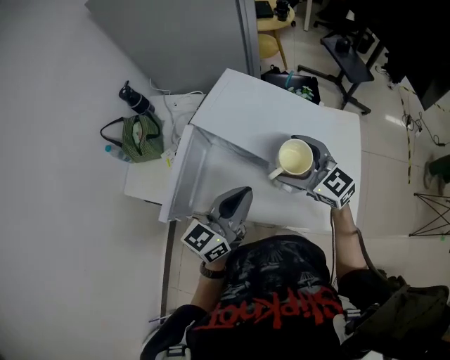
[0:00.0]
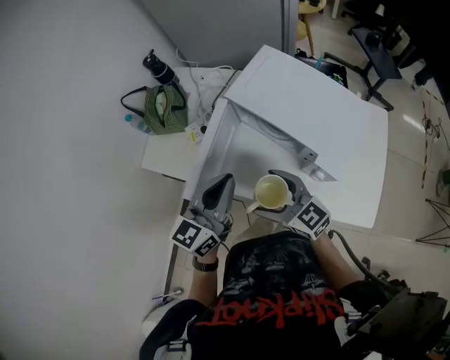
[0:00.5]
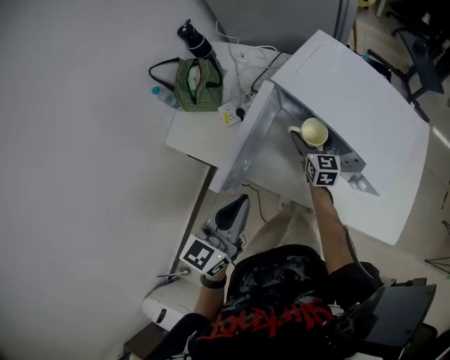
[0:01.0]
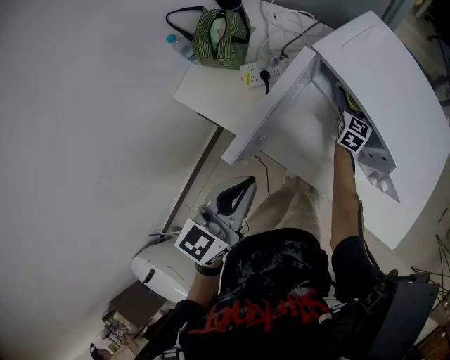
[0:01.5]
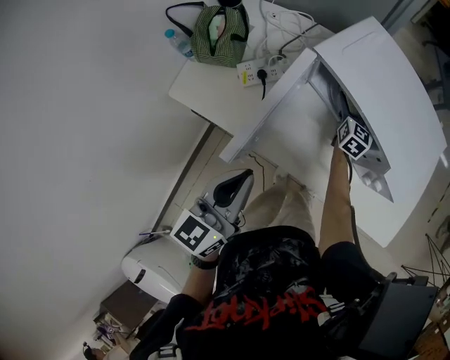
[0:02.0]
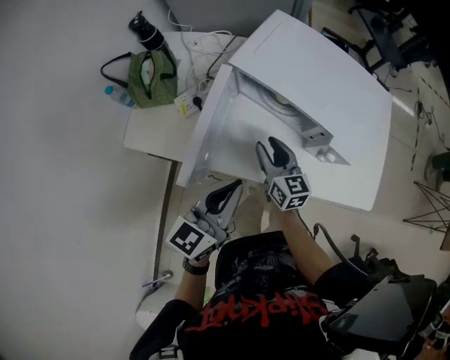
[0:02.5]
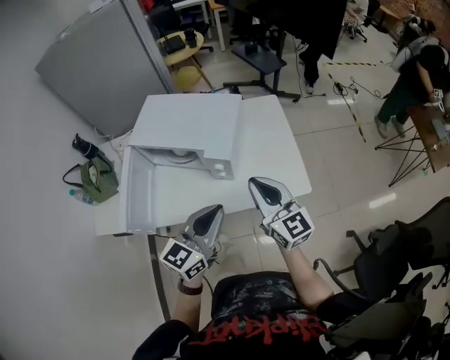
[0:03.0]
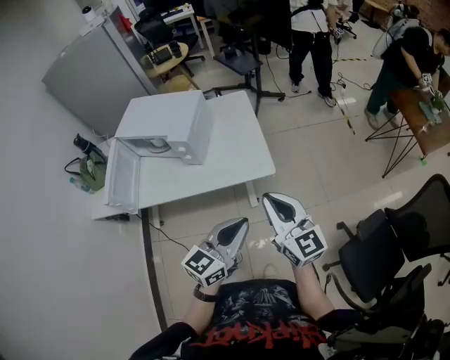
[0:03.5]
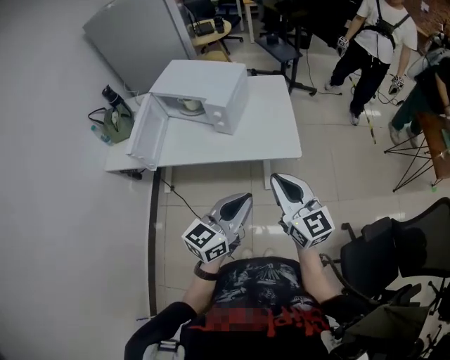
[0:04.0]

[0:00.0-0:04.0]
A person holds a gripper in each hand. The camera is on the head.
0:00.0 to 0:02.0: The right gripper travels downward and forward by about 35 cm, and swivels approximately 50 degrees. Meanwhile the left gripper goes roughly 25 cm to the left, and turns by approximately 30 degrees.
0:02.0 to 0:04.0: Both grippers are carried to the right and backward, approximately 60 cm. The left gripper changes its angle by roughly 40 degrees. The right gripper travels upward by about 35 cm, turns by roughly 30 degrees, and closes.

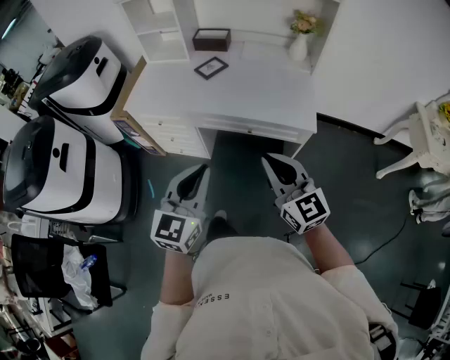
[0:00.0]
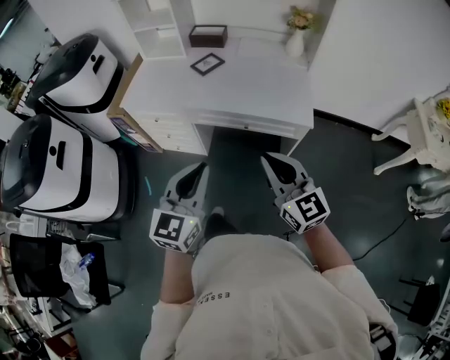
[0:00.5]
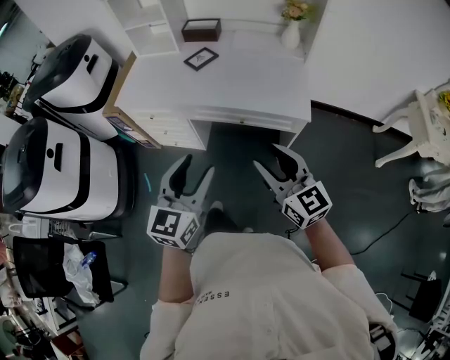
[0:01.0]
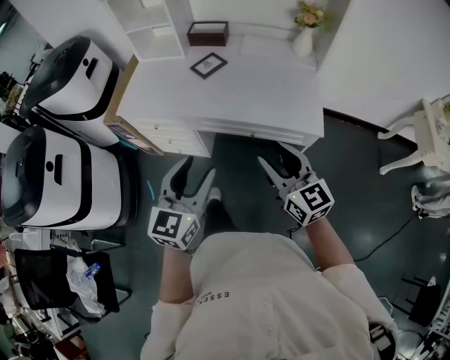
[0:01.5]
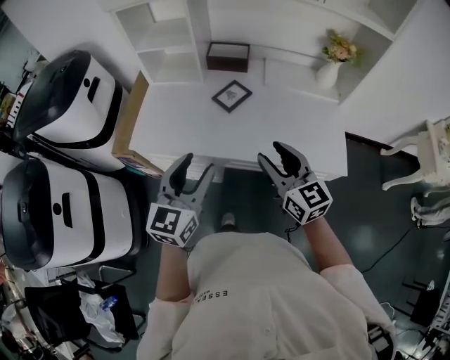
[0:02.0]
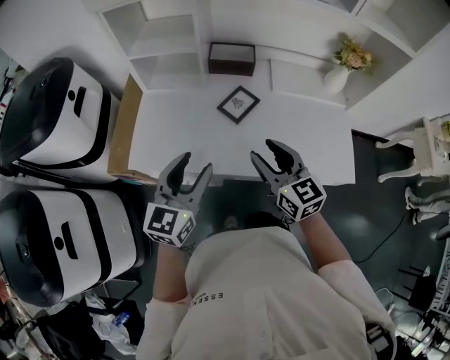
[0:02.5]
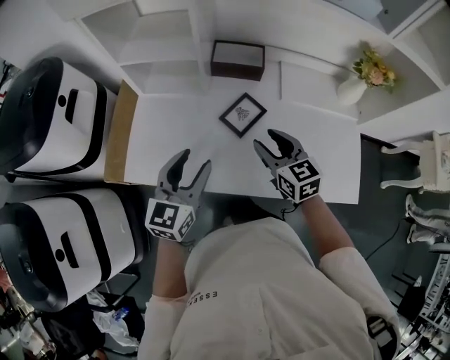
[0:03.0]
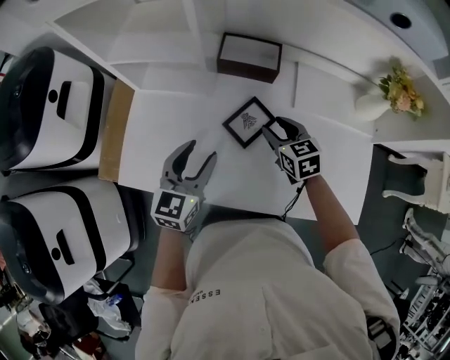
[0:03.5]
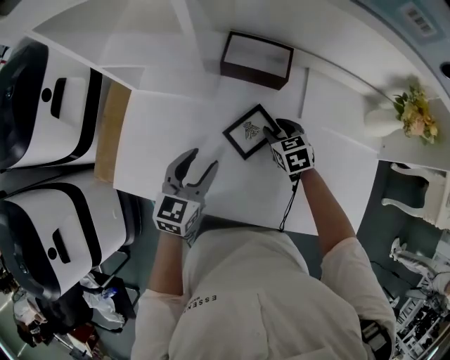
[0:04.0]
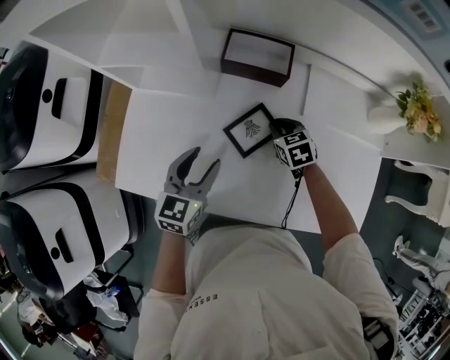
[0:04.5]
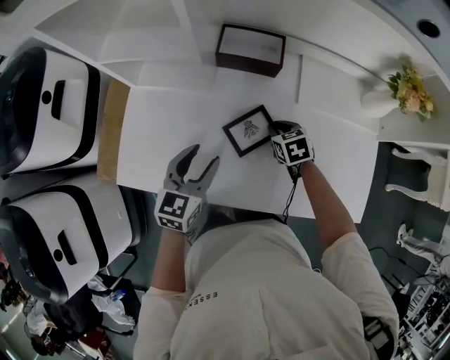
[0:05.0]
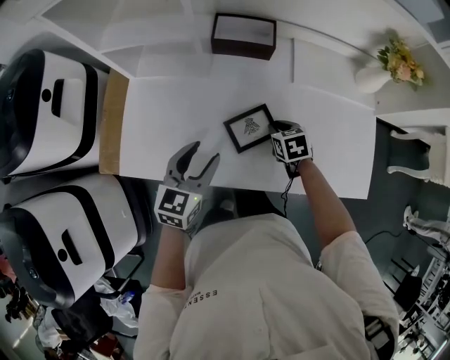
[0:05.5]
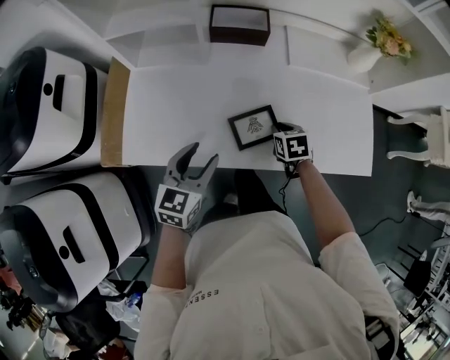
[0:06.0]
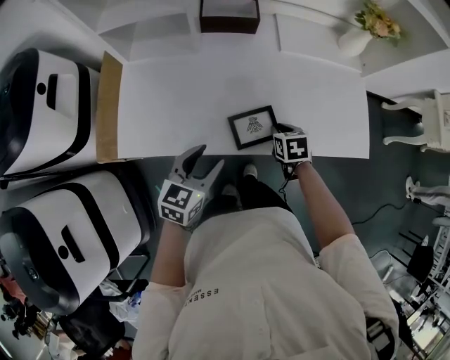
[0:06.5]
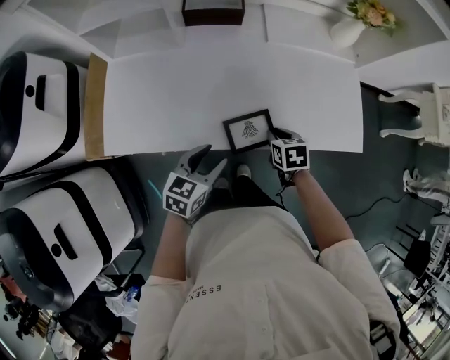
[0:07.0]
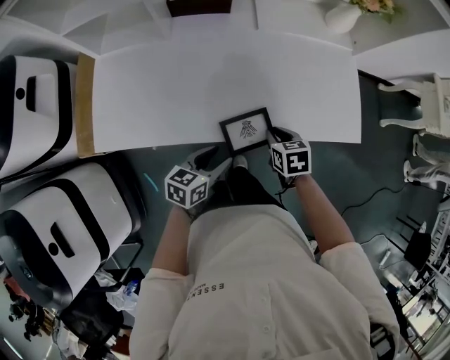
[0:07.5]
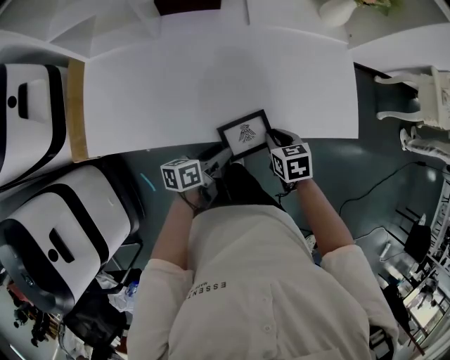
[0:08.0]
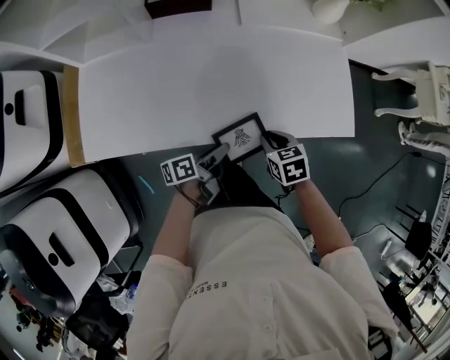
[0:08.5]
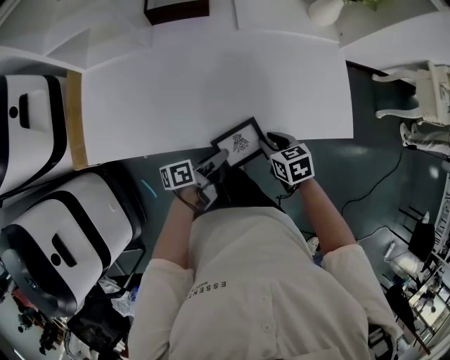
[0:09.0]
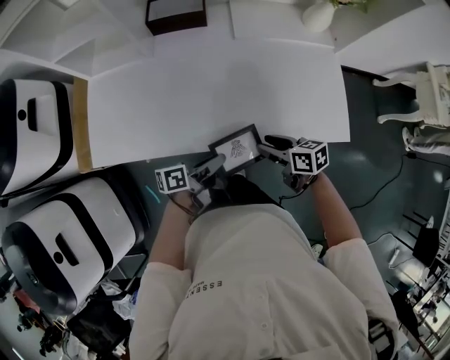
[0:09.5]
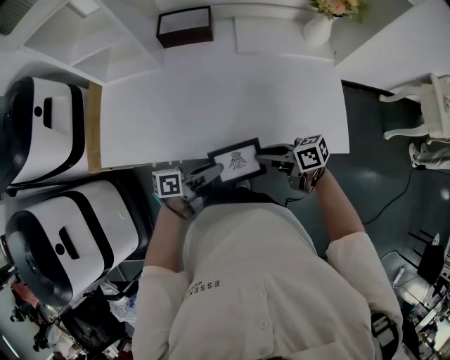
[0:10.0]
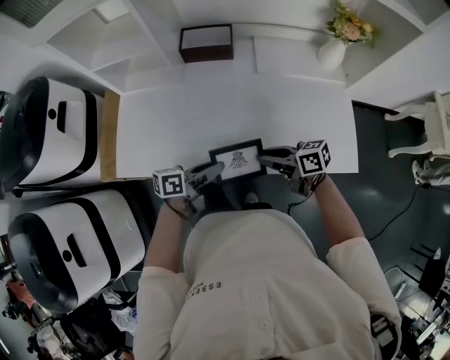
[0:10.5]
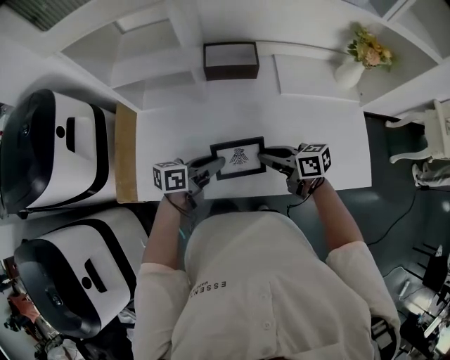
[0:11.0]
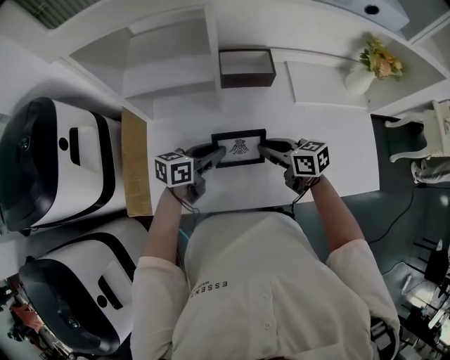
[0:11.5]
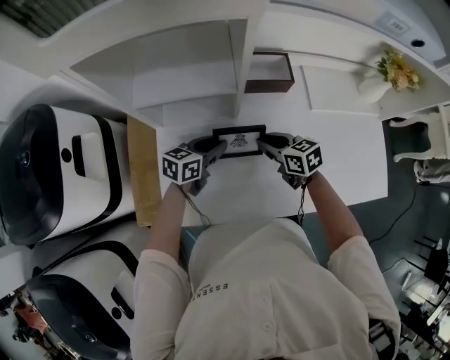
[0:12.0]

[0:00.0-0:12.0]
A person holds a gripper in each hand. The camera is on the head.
0:00.0 to 0:02.0: The right gripper travels forward by roughly 25 cm, and opens. Meanwhile the left gripper heads forward and to the left, covering about 30 cm, and opens up.
0:02.0 to 0:04.0: The grippers both shift forward and downward by about 40 cm. The right gripper points its fingers about 40 degrees further downward.
0:04.0 to 0:06.0: Both grippers travel together backward, about 15 cm. The right gripper turns by some 30 degrees, and closes.
0:06.0 to 0:08.0: The left gripper travels to the right and downward by roughly 20 cm, and twists approximately 50 degrees counterclockwise, seen from behind; the right gripper moves backward and to the right, some 15 cm.
0:08.0 to 0:10.0: The grippers both shift upward by roughly 10 cm. The right gripper tips its fingers upward by approximately 40 degrees, and opens, then closes once more. The left gripper closes up.
0:10.0 to 0:12.0: The right gripper ends up approximately 35 cm from where it was, and turns by about 30 degrees. The left gripper changes place by approximately 40 cm, and rotates approximately 40 degrees.

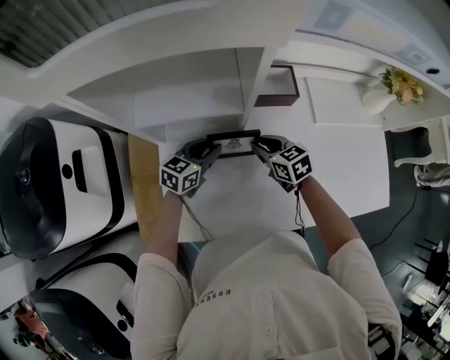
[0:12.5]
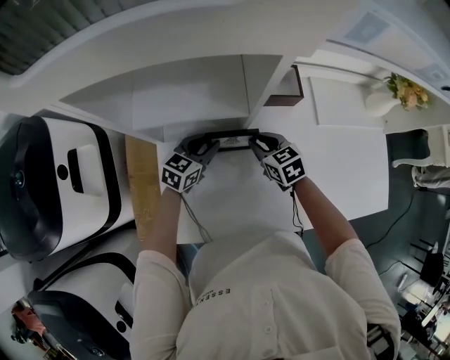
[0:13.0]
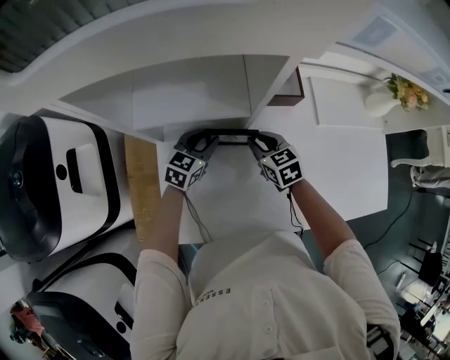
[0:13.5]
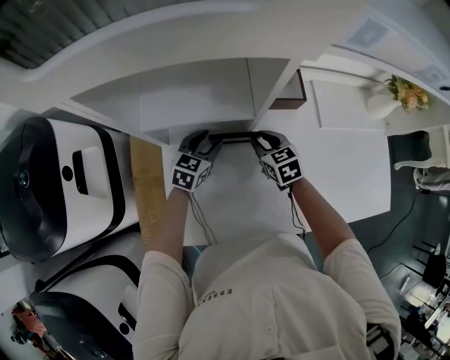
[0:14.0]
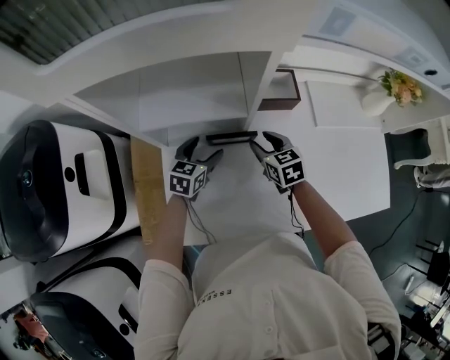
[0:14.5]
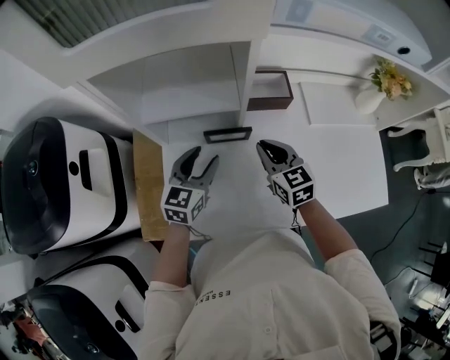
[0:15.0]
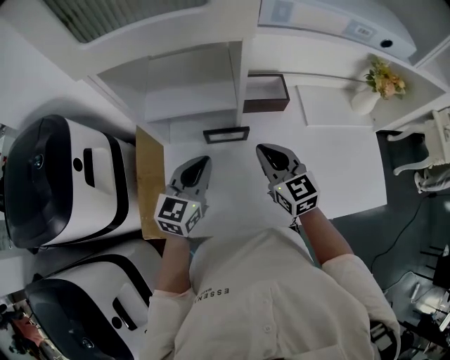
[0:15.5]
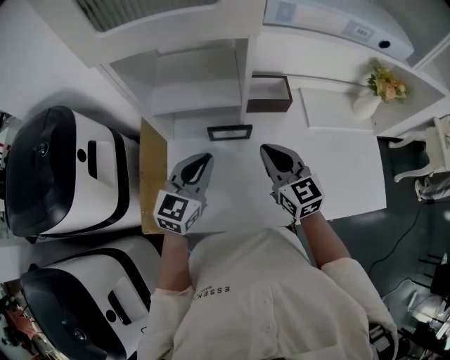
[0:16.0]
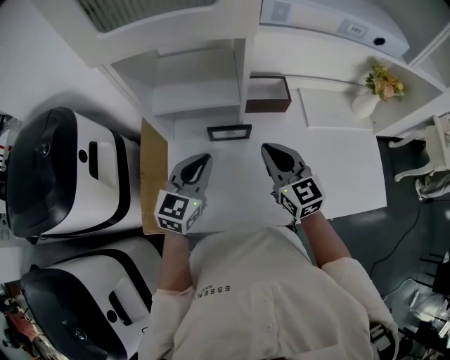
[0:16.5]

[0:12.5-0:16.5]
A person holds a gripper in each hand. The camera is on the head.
0:12.5 to 0:14.5: The right gripper opens its fingers, while the left gripper opens its fingers.
0:14.5 to 0:16.5: Both grippers move upward and backward, approximately 20 cm. The right gripper turns by roughly 30 degrees, and closes up. Meanwhile the left gripper swivels some 20 degrees, and closes.

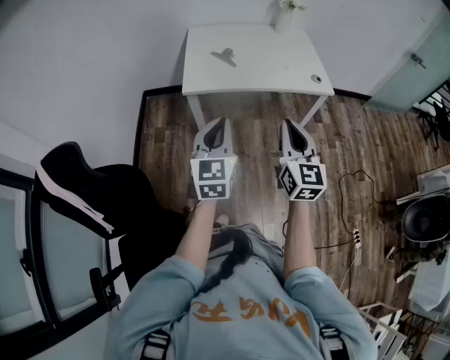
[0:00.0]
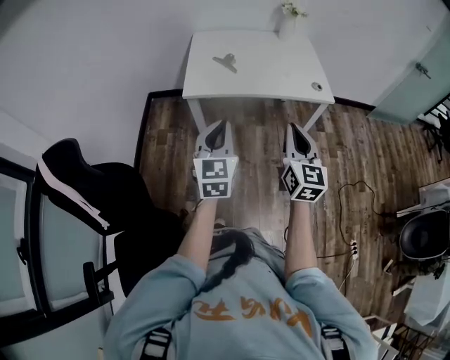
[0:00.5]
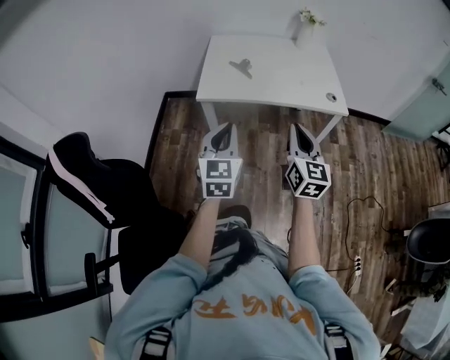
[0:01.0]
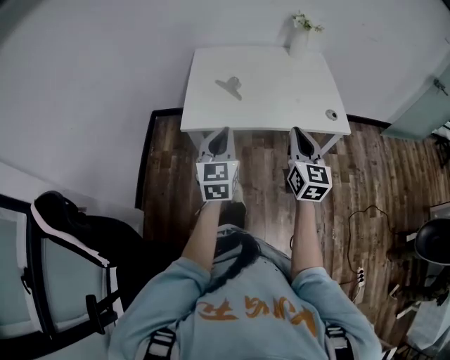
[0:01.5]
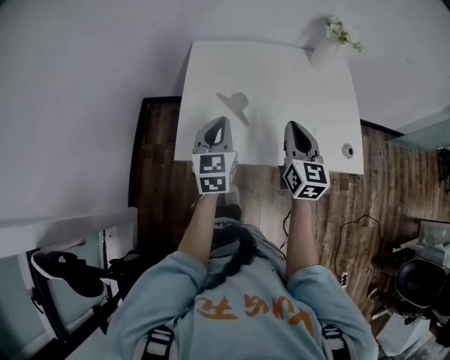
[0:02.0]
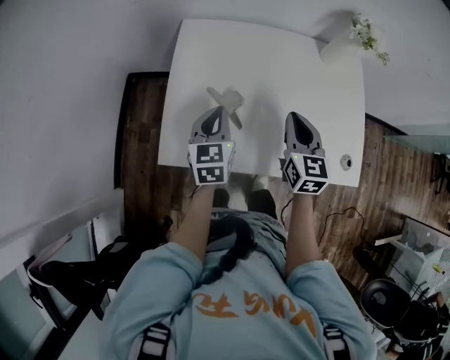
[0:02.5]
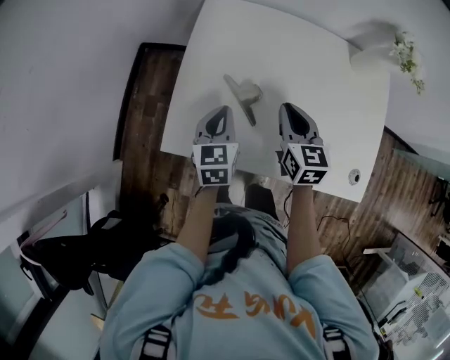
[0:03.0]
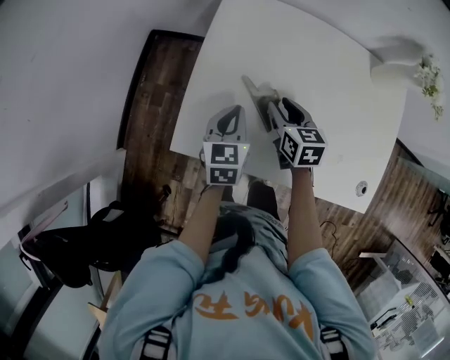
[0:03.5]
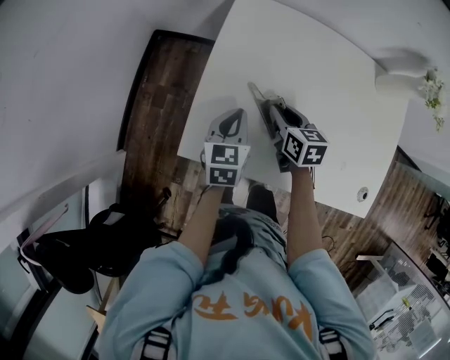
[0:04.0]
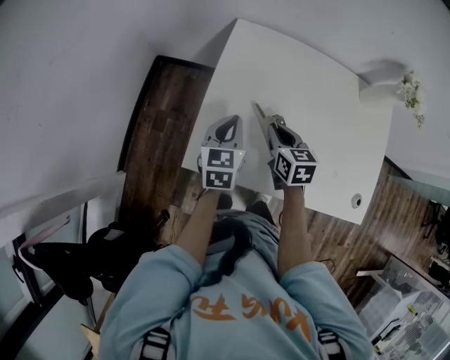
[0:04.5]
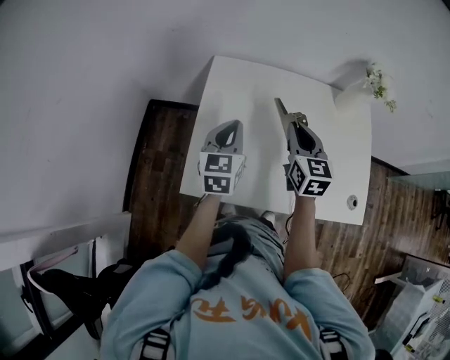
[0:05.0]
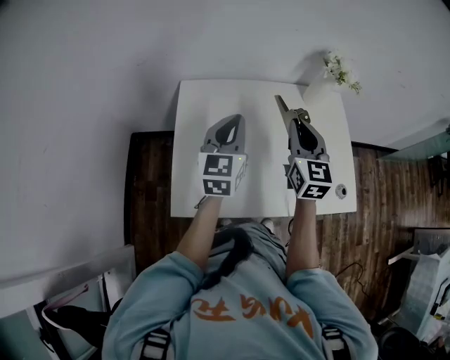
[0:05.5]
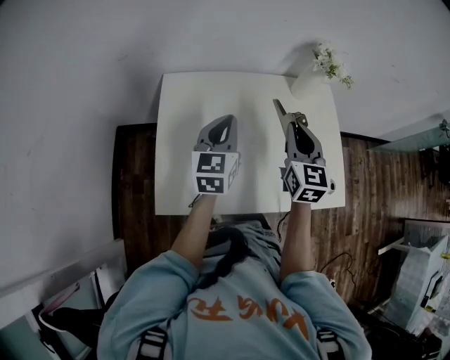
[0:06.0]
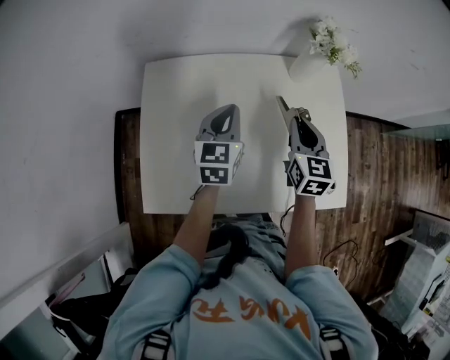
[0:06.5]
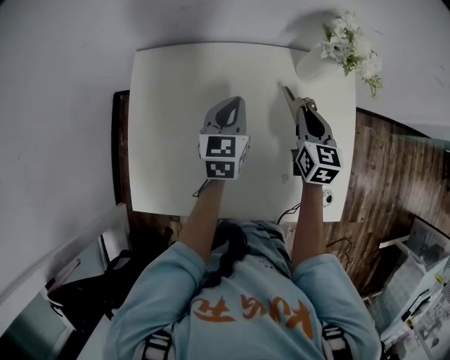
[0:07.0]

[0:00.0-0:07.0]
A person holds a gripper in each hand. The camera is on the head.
0:00.0 to 0:02.0: The two grippers travel together, forward, about 40 cm.
0:02.0 to 0:03.5: The left gripper goes approximately 20 cm downward and forward, and changes its angle by roughly 20 degrees; the right gripper moves downward, forward and to the left, roughly 25 cm, swivels approximately 40 degrees, and opens its fingers.
0:03.5 to 0:05.0: The grippers both shift upward by about 15 cm. The right gripper changes its angle by about 30 degrees, and closes up.
0:05.0 to 0:07.0: The left gripper shifts some 25 cm to the right and forward. Meanwhile the right gripper shifts approximately 30 cm to the right, forward and downward.
